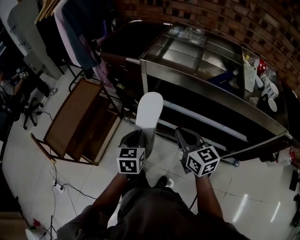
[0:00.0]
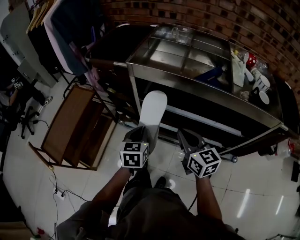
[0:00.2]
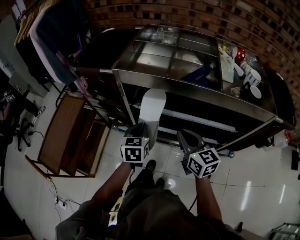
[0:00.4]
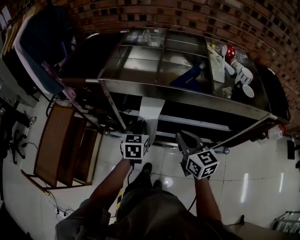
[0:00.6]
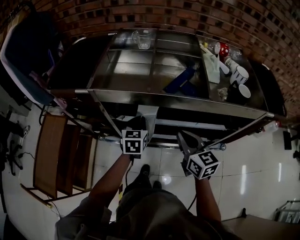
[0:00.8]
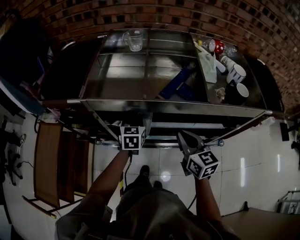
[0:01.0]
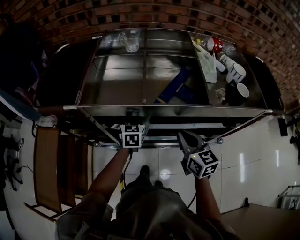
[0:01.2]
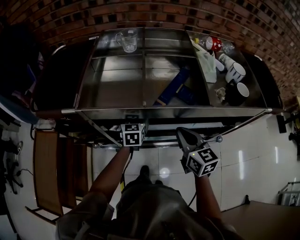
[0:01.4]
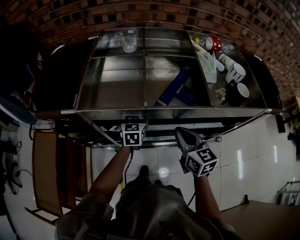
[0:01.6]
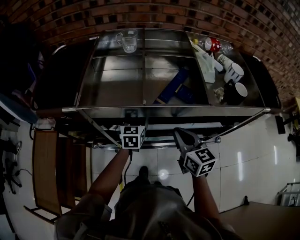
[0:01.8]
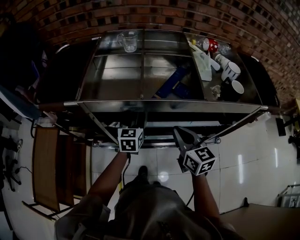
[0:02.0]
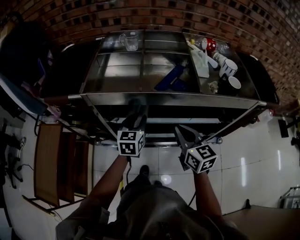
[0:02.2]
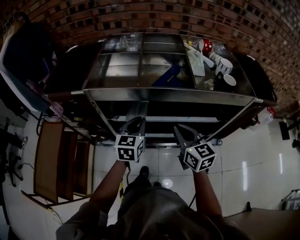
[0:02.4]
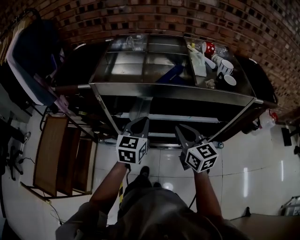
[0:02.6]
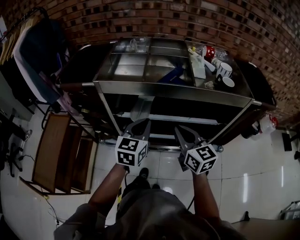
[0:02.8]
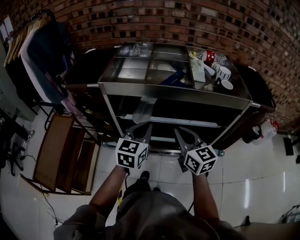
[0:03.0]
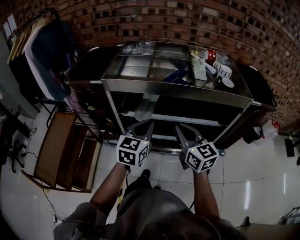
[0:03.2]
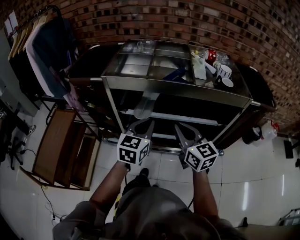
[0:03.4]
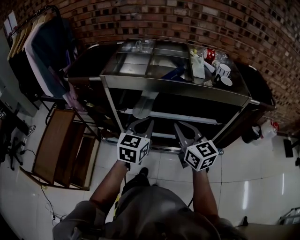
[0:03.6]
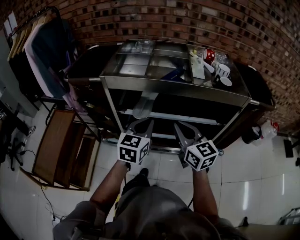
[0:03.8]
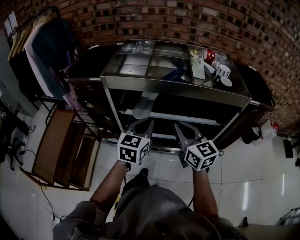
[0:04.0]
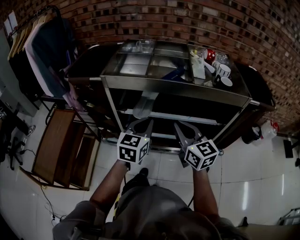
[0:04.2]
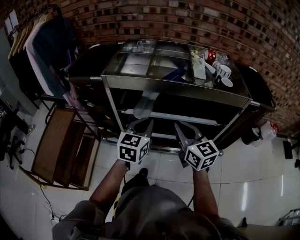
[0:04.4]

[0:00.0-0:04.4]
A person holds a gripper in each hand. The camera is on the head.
0:00.0 to 0:01.4: The left gripper moves about 35 cm, and swivels approximately 20 degrees. The right gripper changes place by about 20 cm, and swivels about 30 degrees.
0:01.4 to 0:03.0: The right gripper moves backward and upward, approximately 15 cm; the left gripper shifts roughly 30 cm backward and upward, and opens and closes again.
0:03.0 to 0:04.4: The grippers make only small movements.

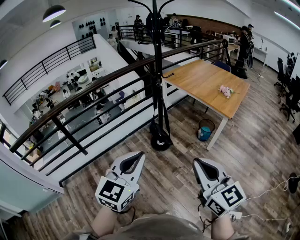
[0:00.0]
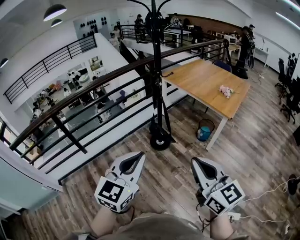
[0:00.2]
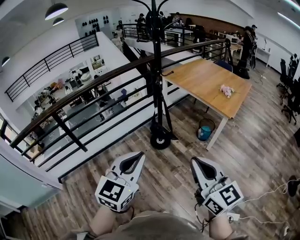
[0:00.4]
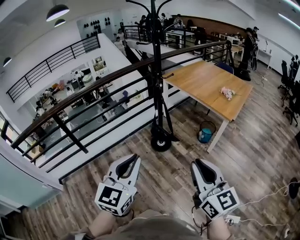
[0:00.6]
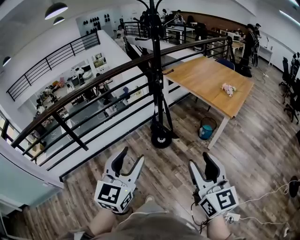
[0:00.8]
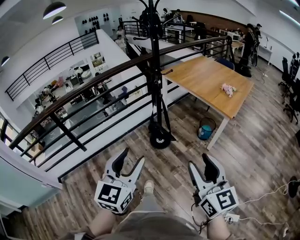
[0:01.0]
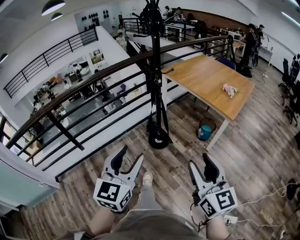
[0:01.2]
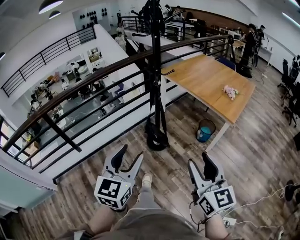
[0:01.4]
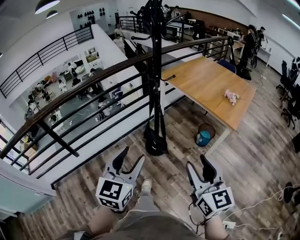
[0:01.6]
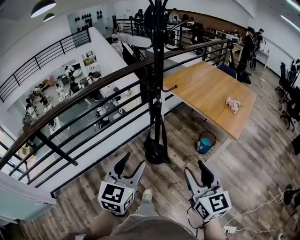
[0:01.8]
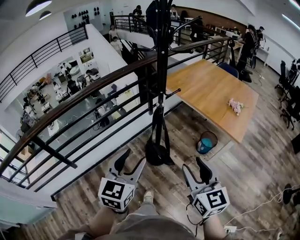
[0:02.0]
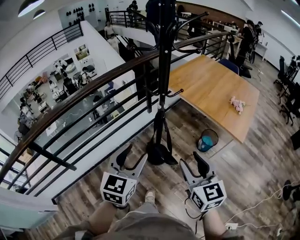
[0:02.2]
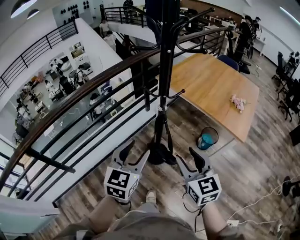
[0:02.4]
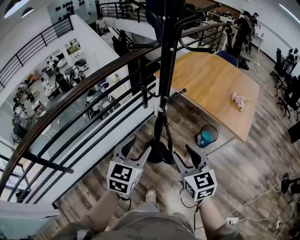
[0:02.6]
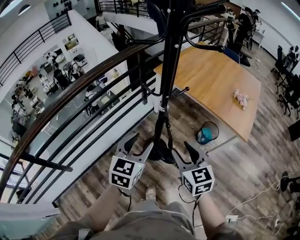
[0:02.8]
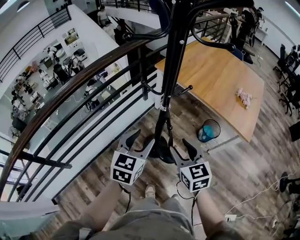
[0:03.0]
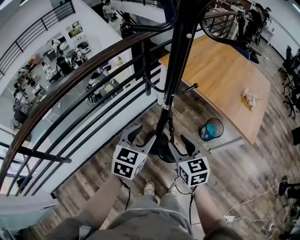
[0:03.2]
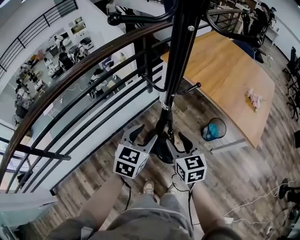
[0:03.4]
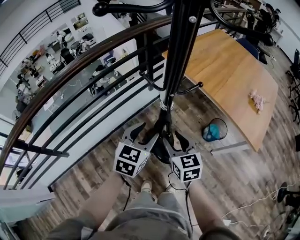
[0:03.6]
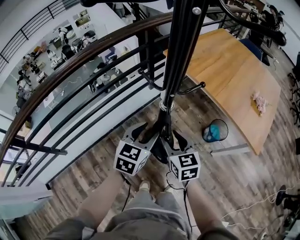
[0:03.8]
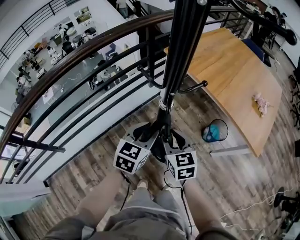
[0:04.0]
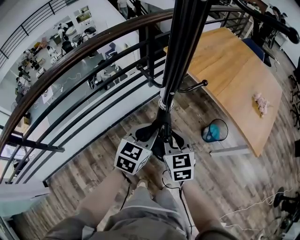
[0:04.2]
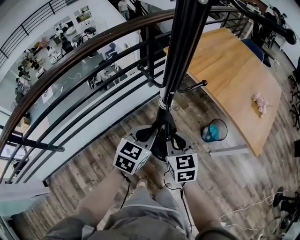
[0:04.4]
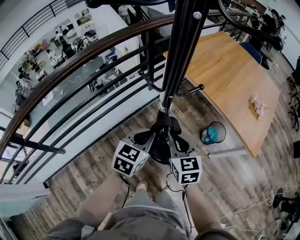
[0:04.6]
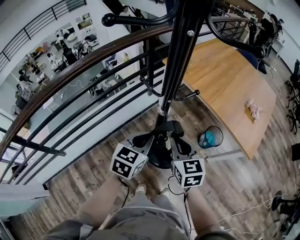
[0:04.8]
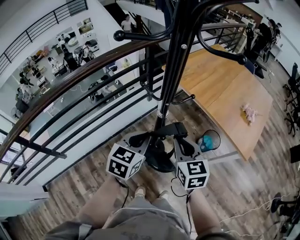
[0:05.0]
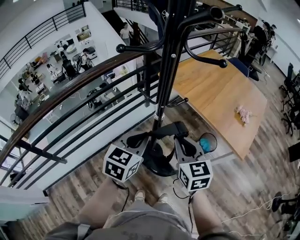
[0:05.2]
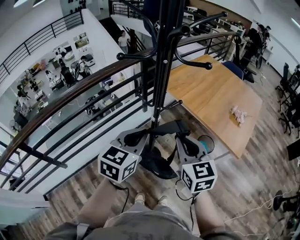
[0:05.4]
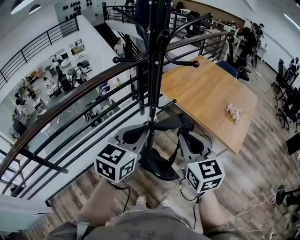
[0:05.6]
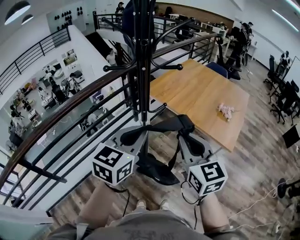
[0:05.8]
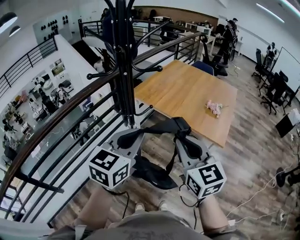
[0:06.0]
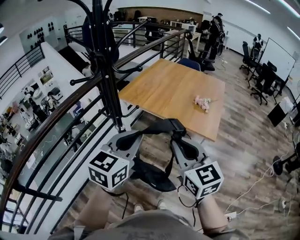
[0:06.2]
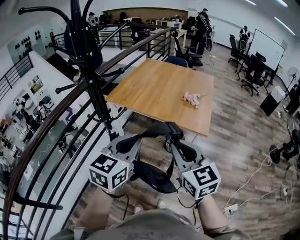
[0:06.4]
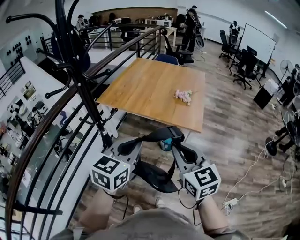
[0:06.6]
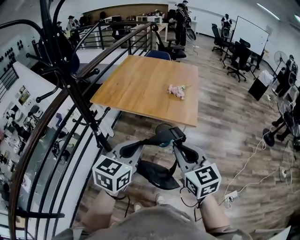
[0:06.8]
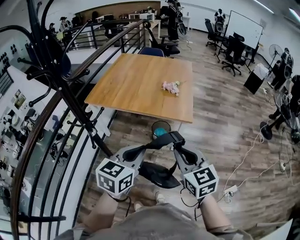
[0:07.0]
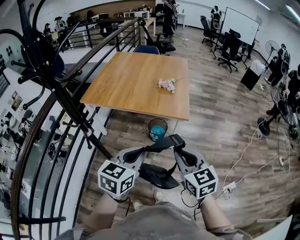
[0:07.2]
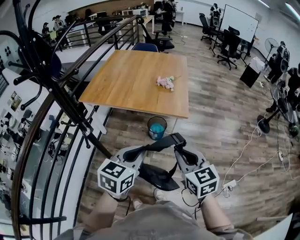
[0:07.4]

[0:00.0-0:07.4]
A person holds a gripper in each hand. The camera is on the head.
0:00.0 to 0:01.4: The left gripper shifts roughly 10 cm forward, and opens its fingers; the right gripper shifts roughly 15 cm forward and downward, and opens its fingers.
0:01.4 to 0:03.0: Both grippers are carried forward, some 40 cm. The right gripper turns by about 20 degrees; the left gripper changes its angle by roughly 20 degrees.
0:03.0 to 0:04.4: The two grippers go some 15 cm downward and forward. The right gripper closes up. The left gripper closes up.
0:04.4 to 0:06.0: The left gripper is displaced upward by approximately 30 cm, and turns by about 20 degrees. Meanwhile the right gripper heads upward and to the right, covering some 35 cm, and rotates roughly 20 degrees.
0:06.0 to 0:07.4: The right gripper moves about 20 cm, and changes its angle by roughly 30 degrees, while the left gripper moves about 20 cm, and swivels about 30 degrees.

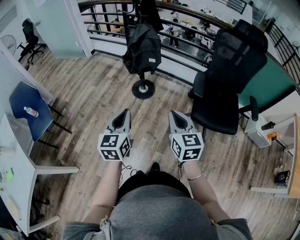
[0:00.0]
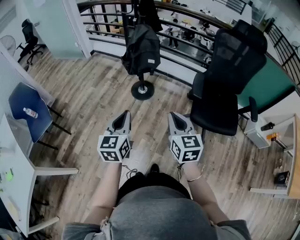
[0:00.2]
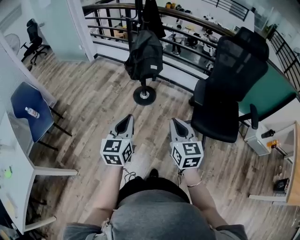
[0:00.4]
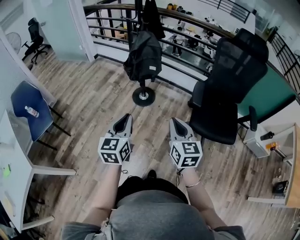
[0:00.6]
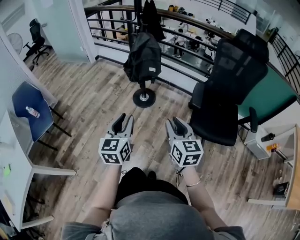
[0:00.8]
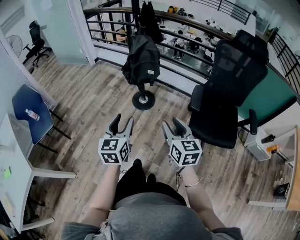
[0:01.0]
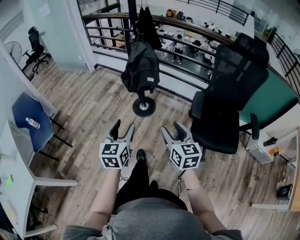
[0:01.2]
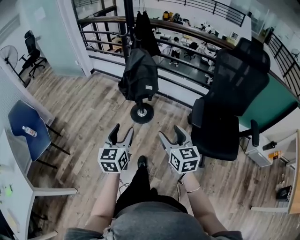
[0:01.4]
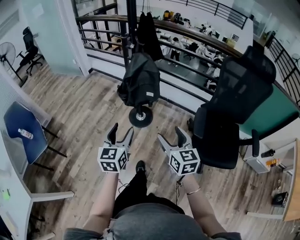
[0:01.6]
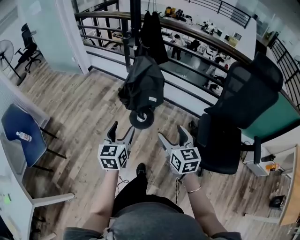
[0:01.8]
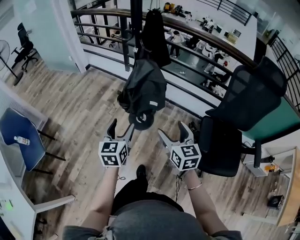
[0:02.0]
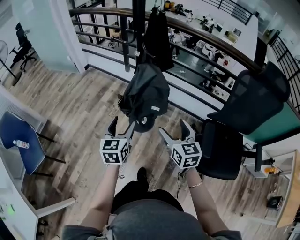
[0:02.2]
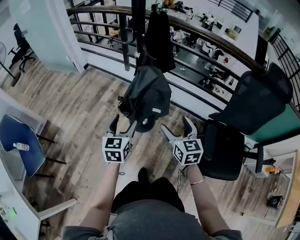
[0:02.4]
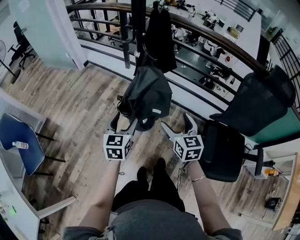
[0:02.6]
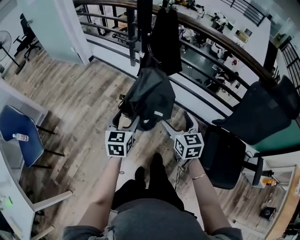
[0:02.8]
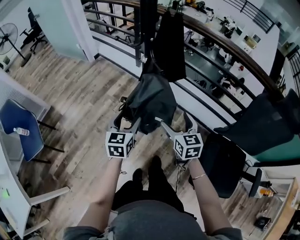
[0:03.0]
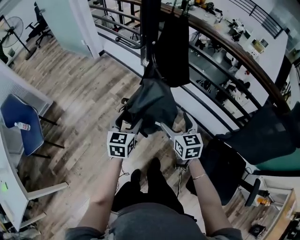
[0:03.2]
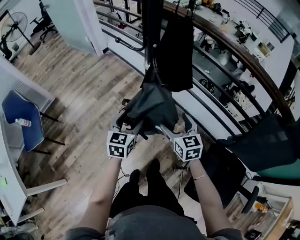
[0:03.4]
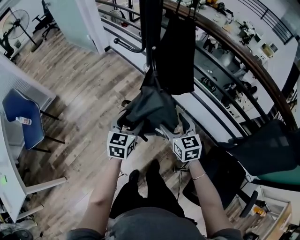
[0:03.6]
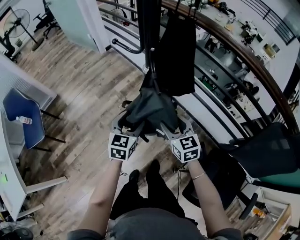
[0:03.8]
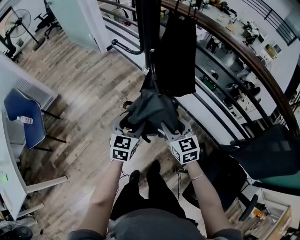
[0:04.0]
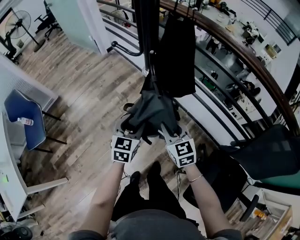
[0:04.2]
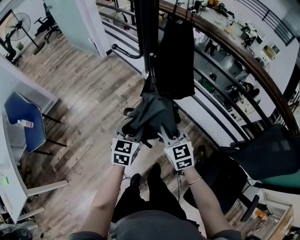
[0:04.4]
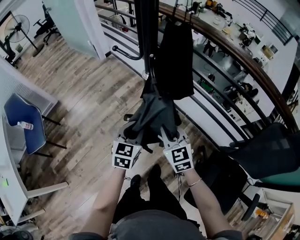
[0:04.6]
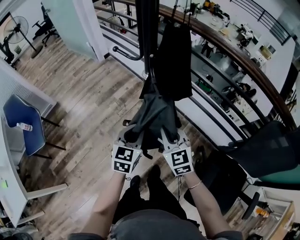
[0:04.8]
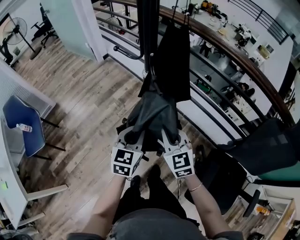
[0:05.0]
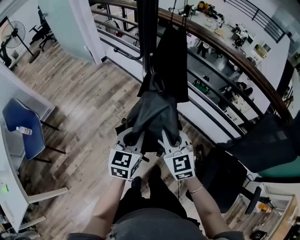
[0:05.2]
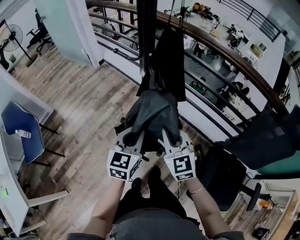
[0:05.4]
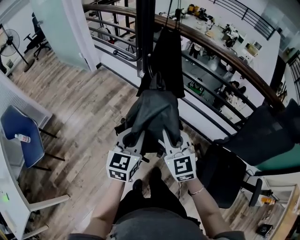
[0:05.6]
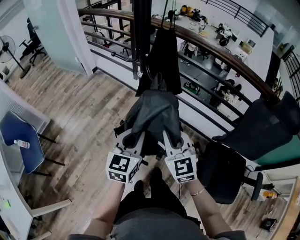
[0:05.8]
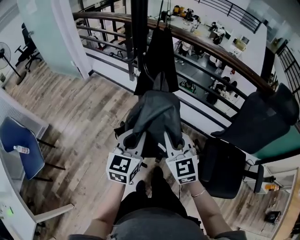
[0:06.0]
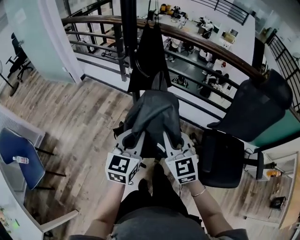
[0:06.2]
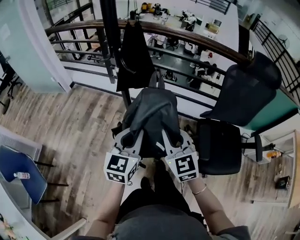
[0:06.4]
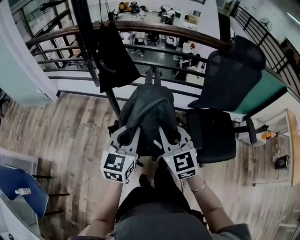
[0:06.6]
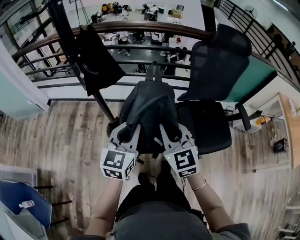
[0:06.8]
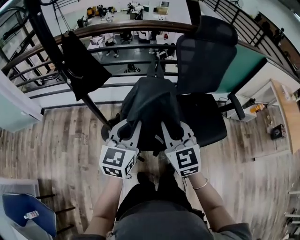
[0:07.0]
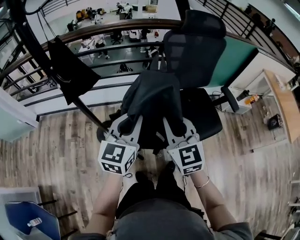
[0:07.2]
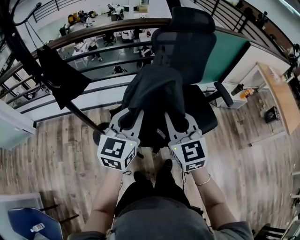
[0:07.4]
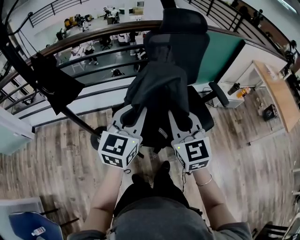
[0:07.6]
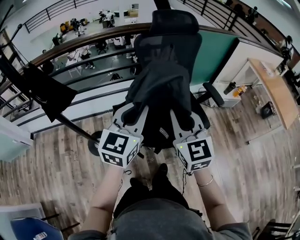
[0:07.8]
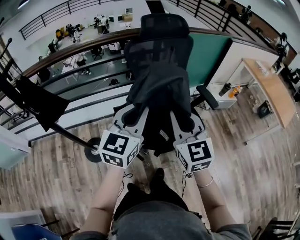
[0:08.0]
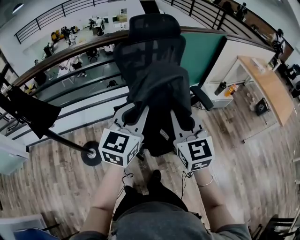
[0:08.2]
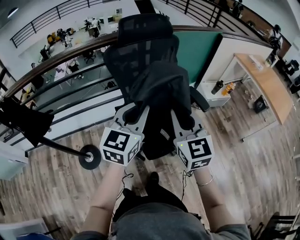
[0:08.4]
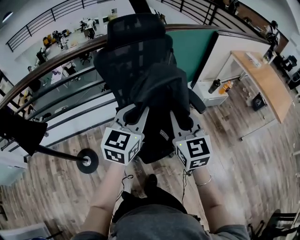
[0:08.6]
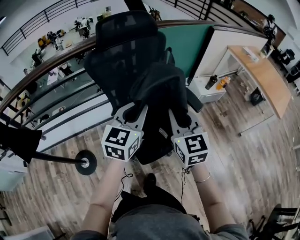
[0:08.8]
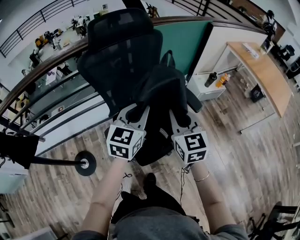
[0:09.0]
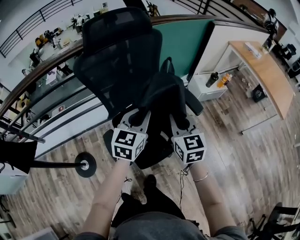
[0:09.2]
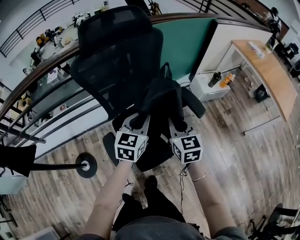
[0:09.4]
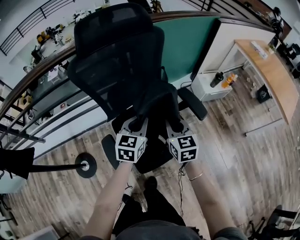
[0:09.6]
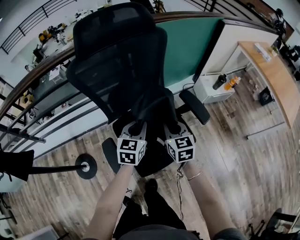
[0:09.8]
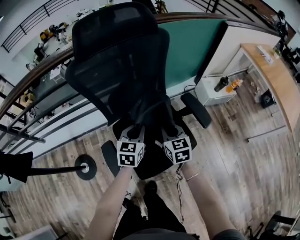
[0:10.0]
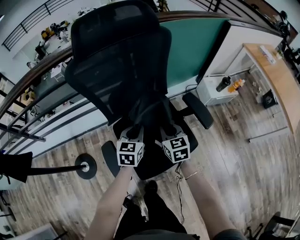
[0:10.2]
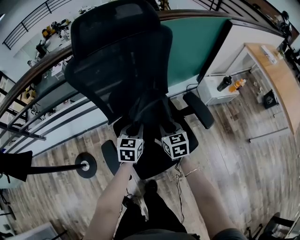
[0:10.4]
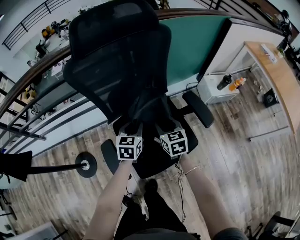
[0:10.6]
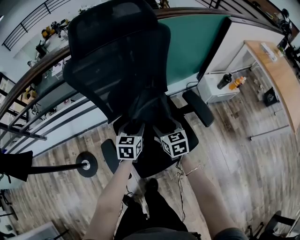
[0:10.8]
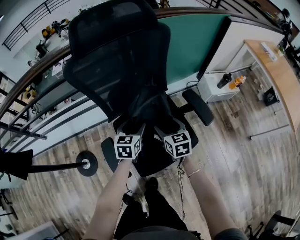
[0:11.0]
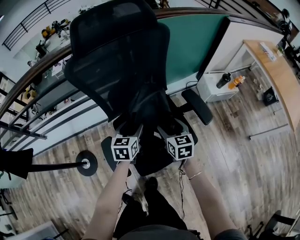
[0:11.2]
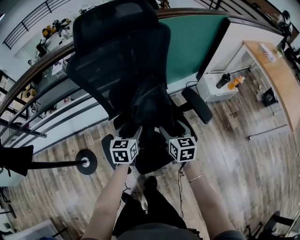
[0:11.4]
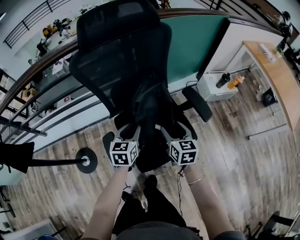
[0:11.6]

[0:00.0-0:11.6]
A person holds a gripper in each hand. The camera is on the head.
0:00.0 to 0:01.4: Both grippers travel together forward, some 10 cm. The right gripper opens up. The left gripper opens.
0:01.4 to 0:02.8: The grippers both shift forward by about 30 cm. The right gripper opens its fingers.
0:02.8 to 0:04.4: The two grippers go about 10 cm forward. The left gripper closes its fingers. The right gripper changes its angle by about 30 degrees, and closes up.
0:04.4 to 0:05.8: Both grippers move upward and backward, some 15 cm. The left gripper closes.
0:05.8 to 0:07.2: The left gripper moves some 25 cm, and turns by approximately 40 degrees, while the right gripper ends up about 25 cm from where it was, and rotates approximately 40 degrees.
0:07.2 to 0:08.8: The two grippers go approximately 35 cm to the right and forward. The right gripper rotates roughly 20 degrees; the left gripper changes its angle by roughly 20 degrees.
0:08.8 to 0:10.2: The grippers both shift downward and forward by roughly 30 cm. The left gripper swivels approximately 20 degrees. The right gripper turns by approximately 20 degrees.
0:10.2 to 0:11.6: The left gripper ends up roughly 5 cm from where it was. Meanwhile the right gripper heads backward, covering about 5 cm, and opens its fingers.
